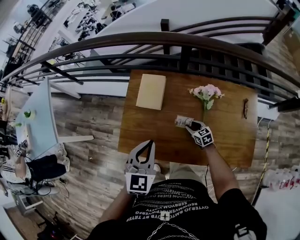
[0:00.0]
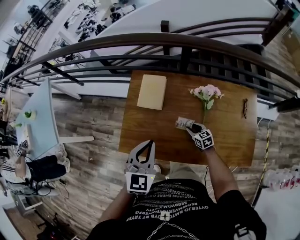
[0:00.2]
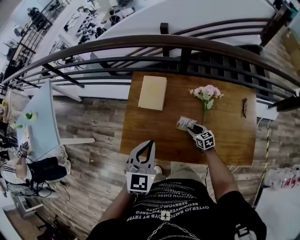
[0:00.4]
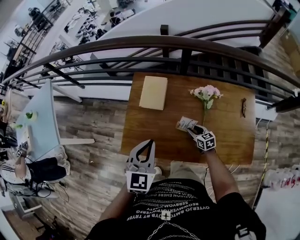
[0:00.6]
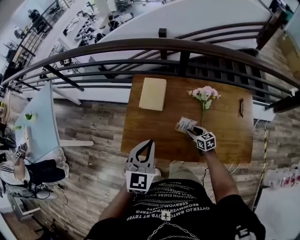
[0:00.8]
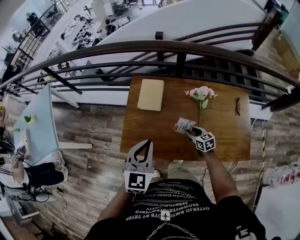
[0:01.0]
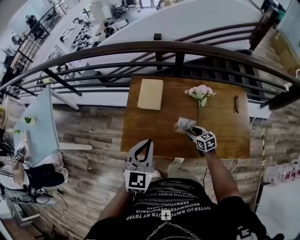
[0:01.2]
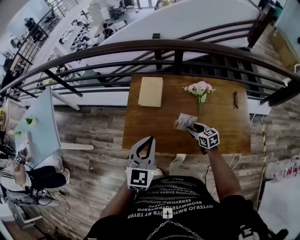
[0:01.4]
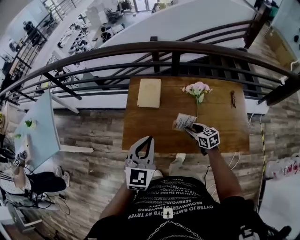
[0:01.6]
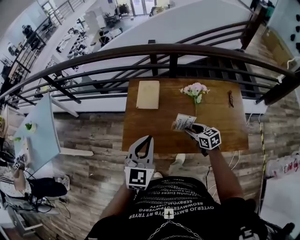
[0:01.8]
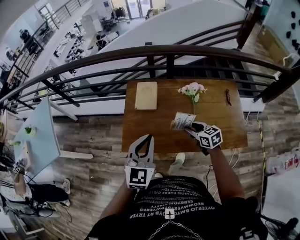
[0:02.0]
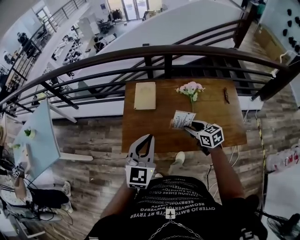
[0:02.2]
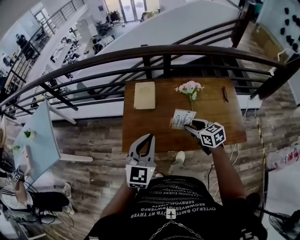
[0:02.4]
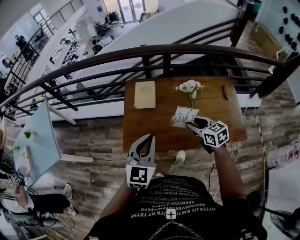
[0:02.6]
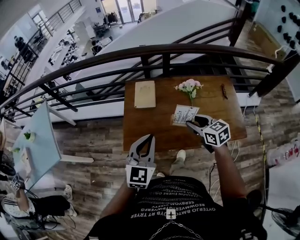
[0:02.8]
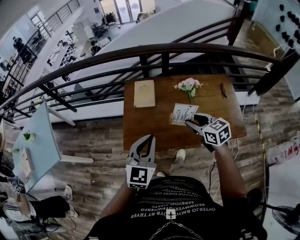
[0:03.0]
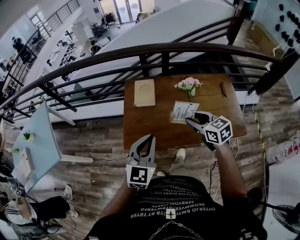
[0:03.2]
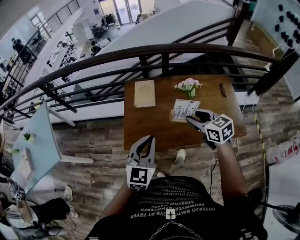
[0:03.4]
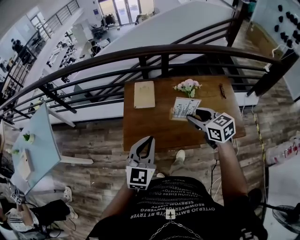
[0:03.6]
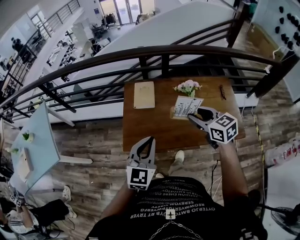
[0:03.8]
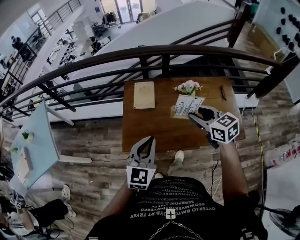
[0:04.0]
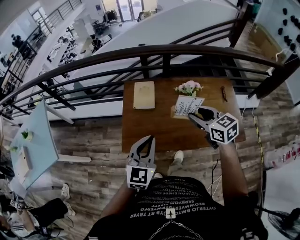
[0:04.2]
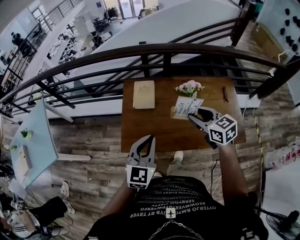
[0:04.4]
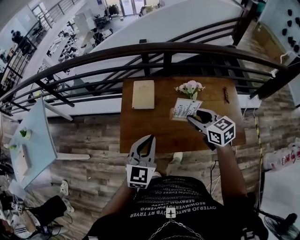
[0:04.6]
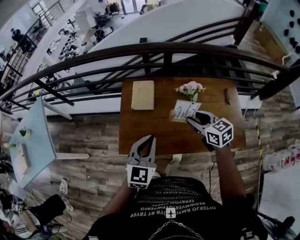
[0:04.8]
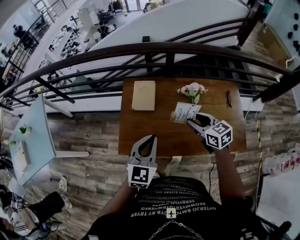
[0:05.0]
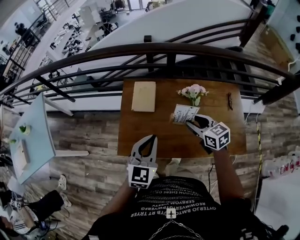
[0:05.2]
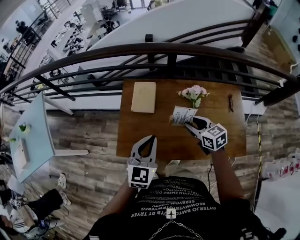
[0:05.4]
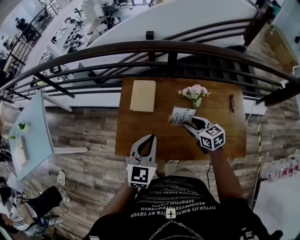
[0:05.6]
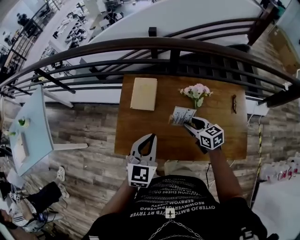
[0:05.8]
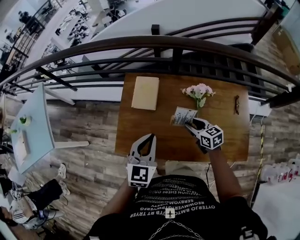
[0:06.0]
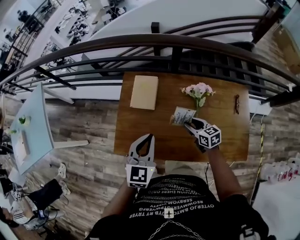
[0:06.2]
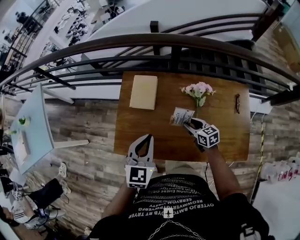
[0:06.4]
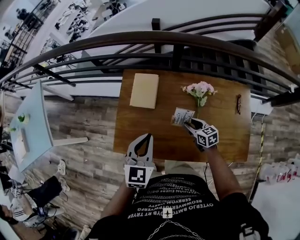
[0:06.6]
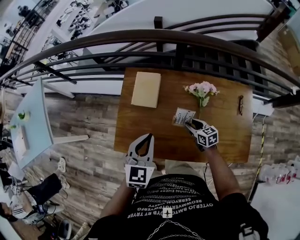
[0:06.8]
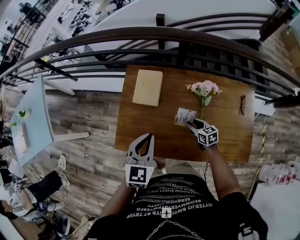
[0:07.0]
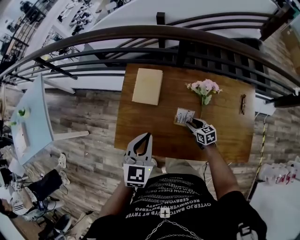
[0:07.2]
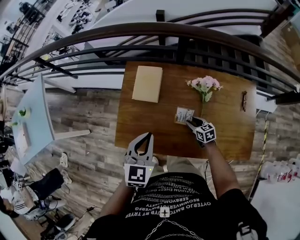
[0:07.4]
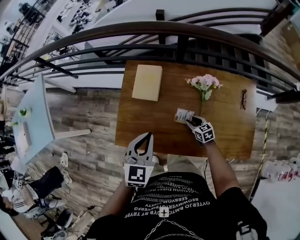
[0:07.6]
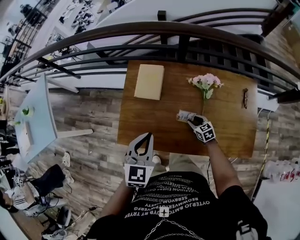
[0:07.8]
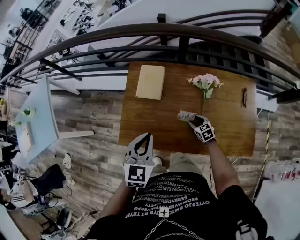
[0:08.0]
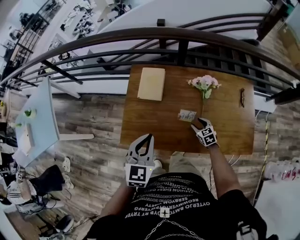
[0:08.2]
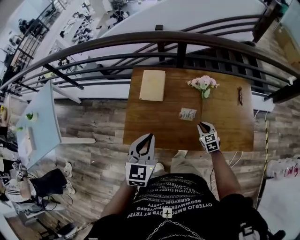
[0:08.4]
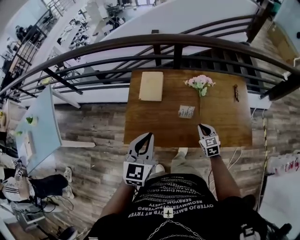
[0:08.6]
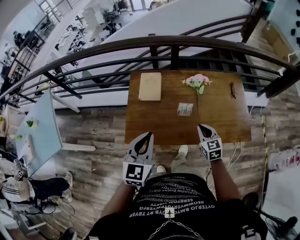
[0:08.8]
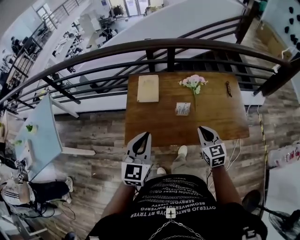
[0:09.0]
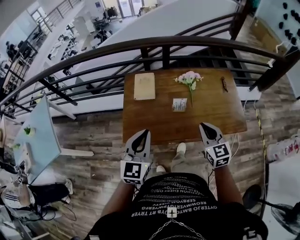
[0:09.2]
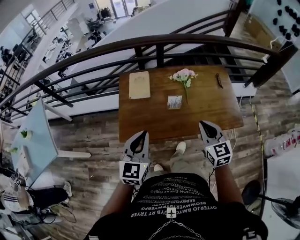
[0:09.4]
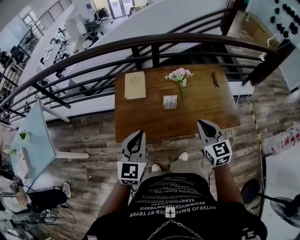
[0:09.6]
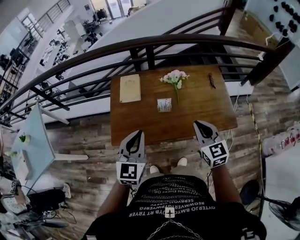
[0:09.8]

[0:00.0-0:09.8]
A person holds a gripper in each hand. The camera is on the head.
0:00.0 to 0:01.4: The right gripper travels upward and backward by roughly 15 cm; the left gripper goes some 5 cm backward.
0:01.4 to 0:02.8: The right gripper moves upward, about 20 cm; the left gripper goes approximately 5 cm backward.
0:02.8 to 0:04.2: The right gripper goes about 5 cm upward.
0:04.2 to 0:05.6: The left gripper goes some 10 cm forward and to the right; the right gripper goes about 15 cm downward and forward.
0:05.6 to 0:07.0: The left gripper moves roughly 5 cm, while the right gripper is displaced downward by about 20 cm.
0:07.0 to 0:08.4: The two grippers go approximately 10 cm backward. The right gripper reaches roughly 5 cm downward, then returns, swivels some 30 degrees, and closes its fingers.
0:08.4 to 0:09.8: The right gripper shifts roughly 30 cm upward and backward, and swivels some 20 degrees; the left gripper travels backward and upward by about 10 cm.

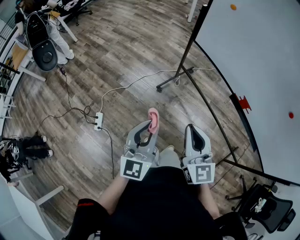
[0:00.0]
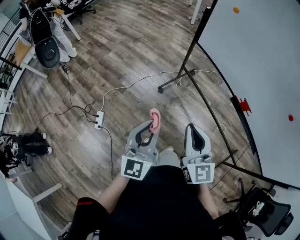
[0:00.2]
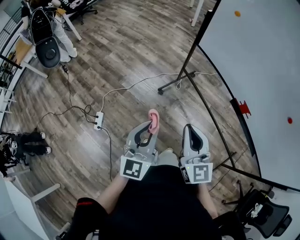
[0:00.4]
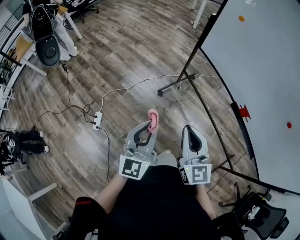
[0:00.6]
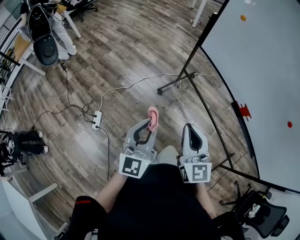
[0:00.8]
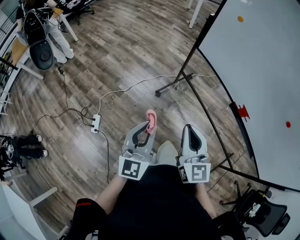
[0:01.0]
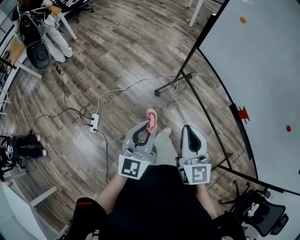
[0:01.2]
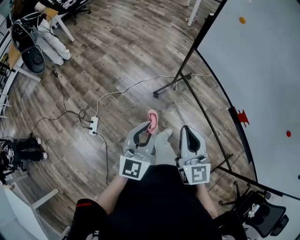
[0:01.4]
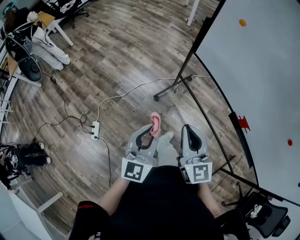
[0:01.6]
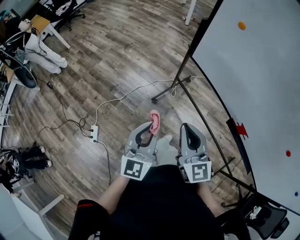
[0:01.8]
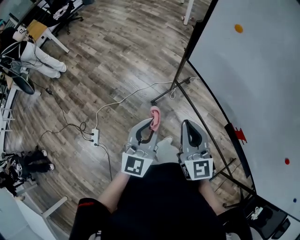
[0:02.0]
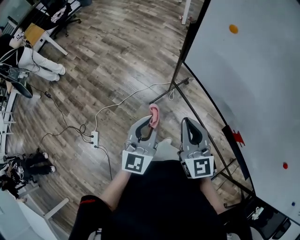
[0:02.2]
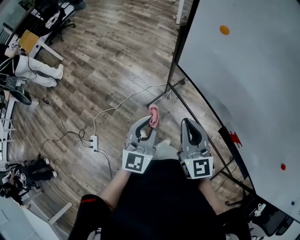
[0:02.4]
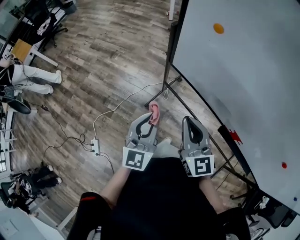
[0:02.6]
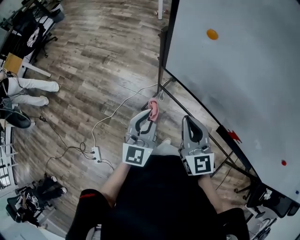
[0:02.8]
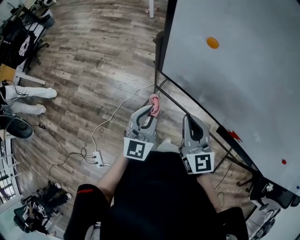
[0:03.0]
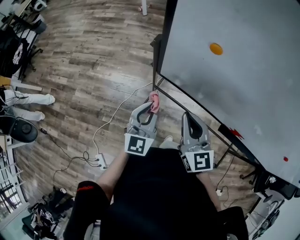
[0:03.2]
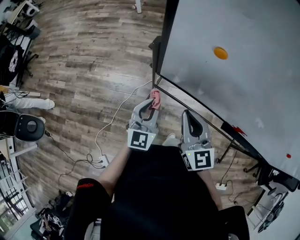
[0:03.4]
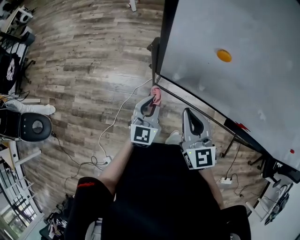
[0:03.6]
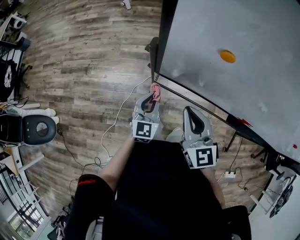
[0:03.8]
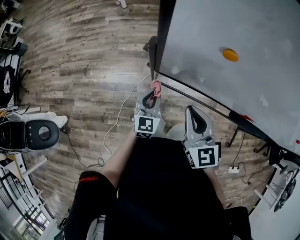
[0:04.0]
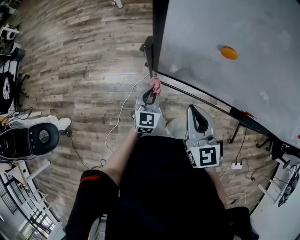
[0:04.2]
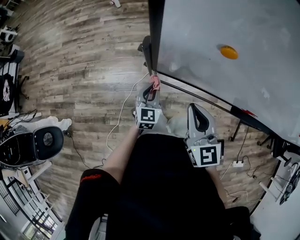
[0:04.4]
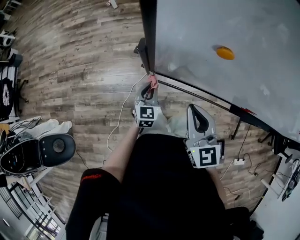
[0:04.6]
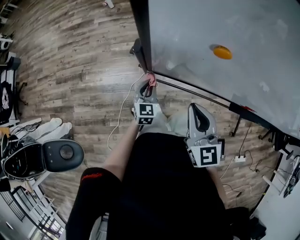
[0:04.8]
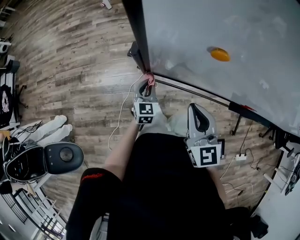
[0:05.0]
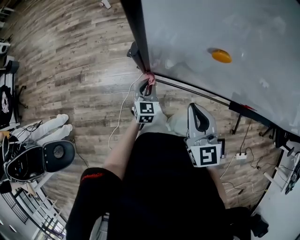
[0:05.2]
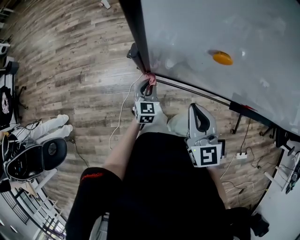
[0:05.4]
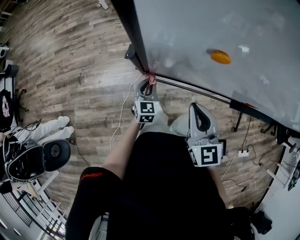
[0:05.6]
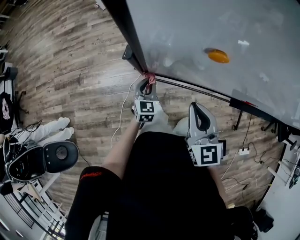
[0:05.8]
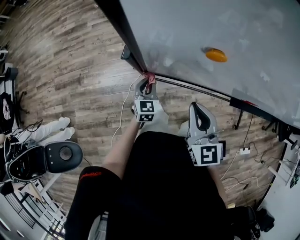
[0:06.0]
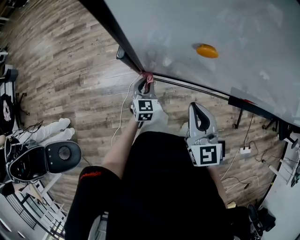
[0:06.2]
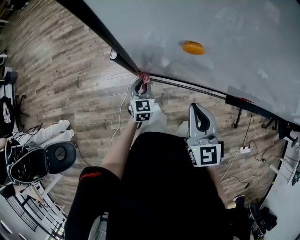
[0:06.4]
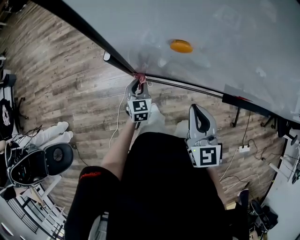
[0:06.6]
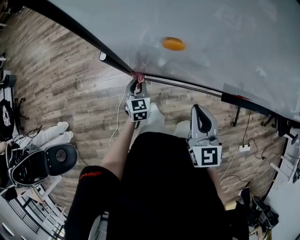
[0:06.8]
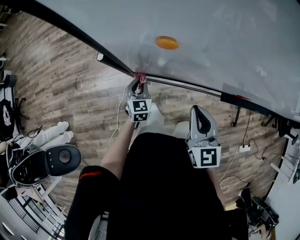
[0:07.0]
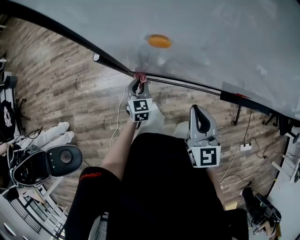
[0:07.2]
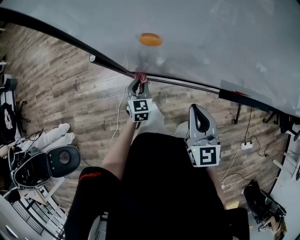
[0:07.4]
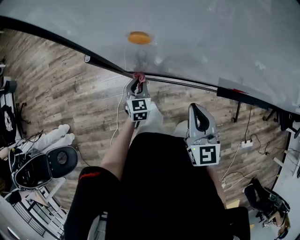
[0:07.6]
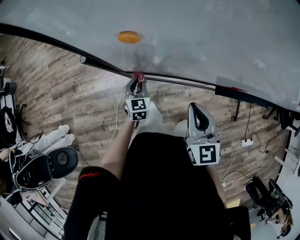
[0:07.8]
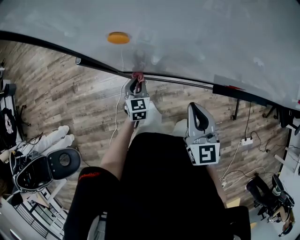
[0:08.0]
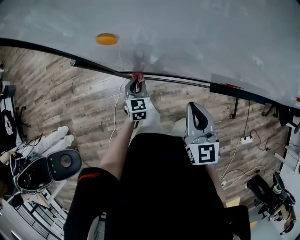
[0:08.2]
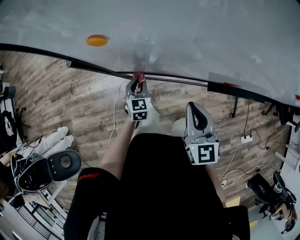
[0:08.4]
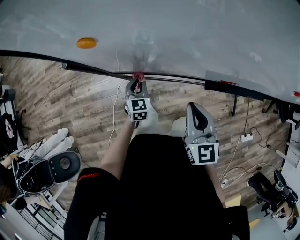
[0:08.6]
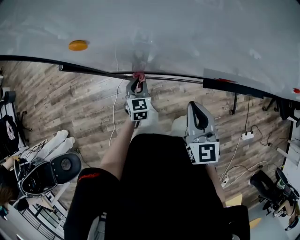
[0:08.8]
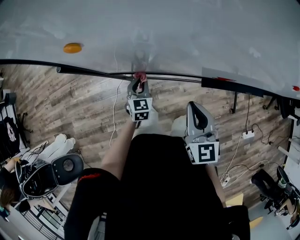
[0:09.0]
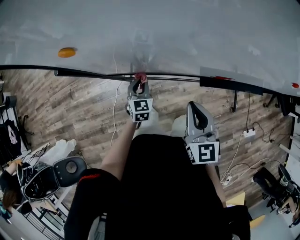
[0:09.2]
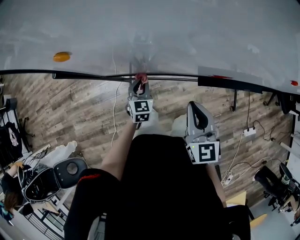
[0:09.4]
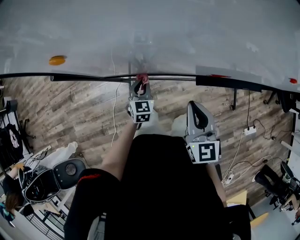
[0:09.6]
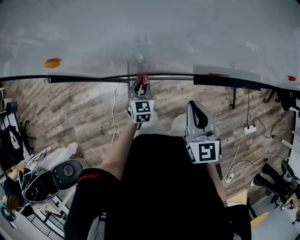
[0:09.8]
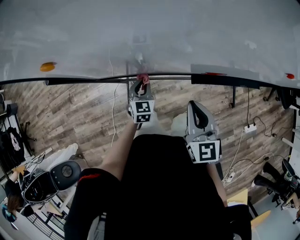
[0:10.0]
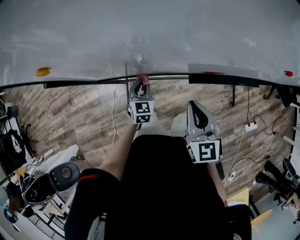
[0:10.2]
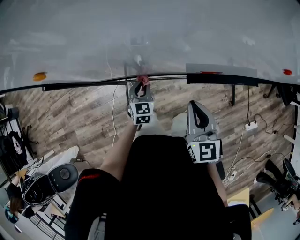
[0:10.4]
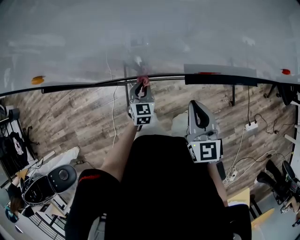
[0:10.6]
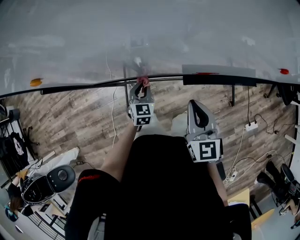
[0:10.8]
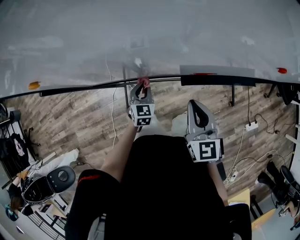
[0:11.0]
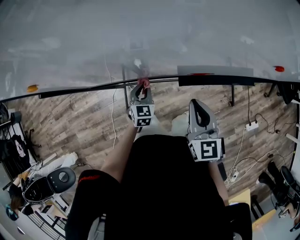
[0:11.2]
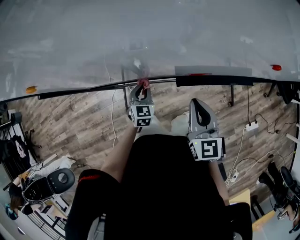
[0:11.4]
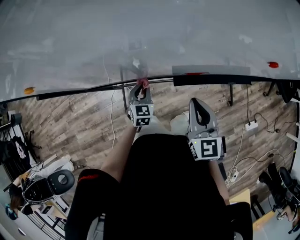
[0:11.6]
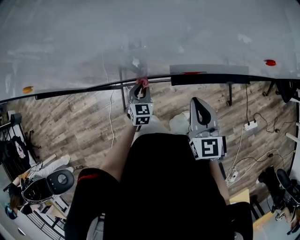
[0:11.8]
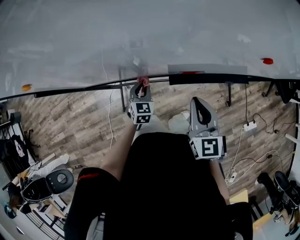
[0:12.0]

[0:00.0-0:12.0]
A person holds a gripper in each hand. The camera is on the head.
0:00.0 to 0:01.6: The two grippers go roughly 10 cm forward.
0:01.6 to 0:03.0: The right gripper heads forward and to the right, covering about 30 cm, while the left gripper is displaced forward by about 35 cm.
0:03.0 to 0:04.4: The right gripper shifts some 5 cm forward. The left gripper travels downward and forward by roughly 25 cm, and swivels approximately 20 degrees.
0:04.4 to 0:06.0: The left gripper ends up approximately 5 cm from where it was.
0:06.0 to 0:07.6: The right gripper is displaced to the right by approximately 10 cm.
0:07.6 to 0:09.0: The grippers both shift to the right by approximately 10 cm.
0:09.0 to 0:10.4: Both grippers travel together to the right, about 10 cm.
0:10.4 to 0:12.0: The two grippers go approximately 10 cm to the right.

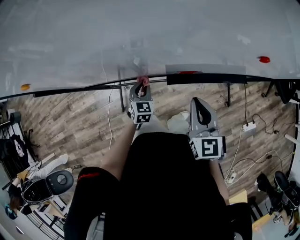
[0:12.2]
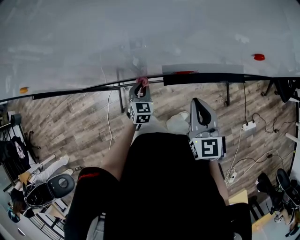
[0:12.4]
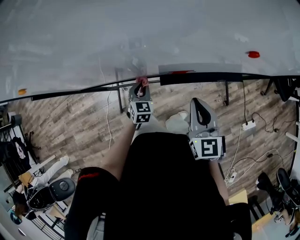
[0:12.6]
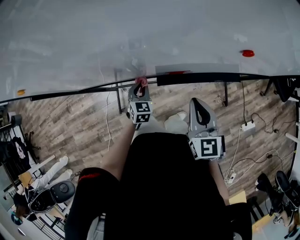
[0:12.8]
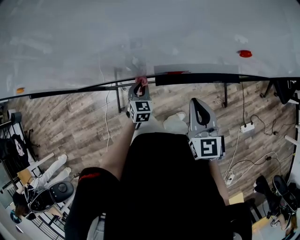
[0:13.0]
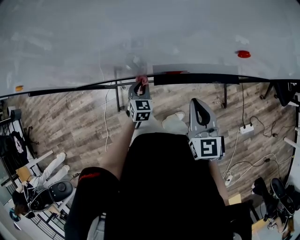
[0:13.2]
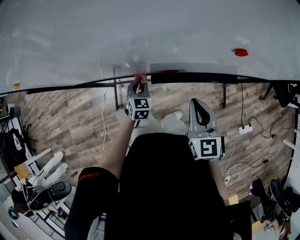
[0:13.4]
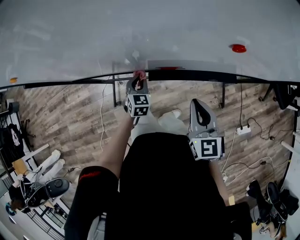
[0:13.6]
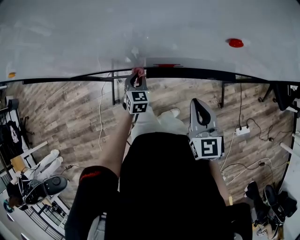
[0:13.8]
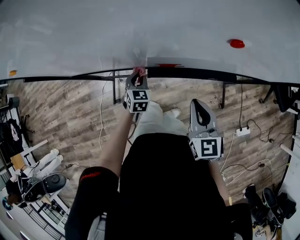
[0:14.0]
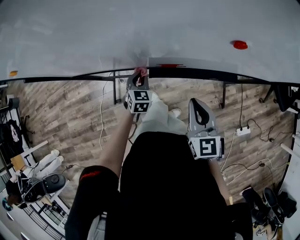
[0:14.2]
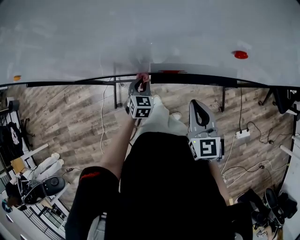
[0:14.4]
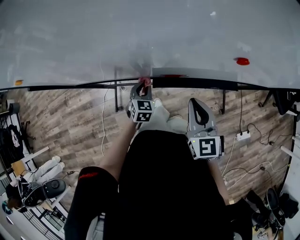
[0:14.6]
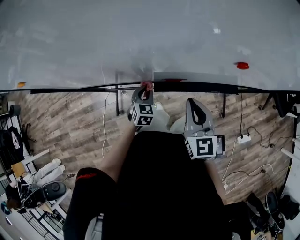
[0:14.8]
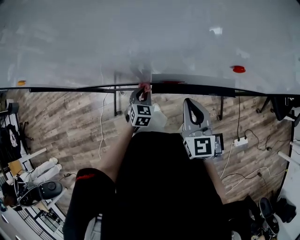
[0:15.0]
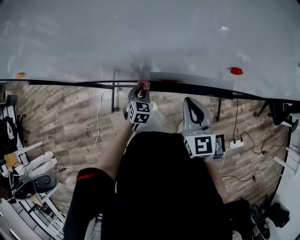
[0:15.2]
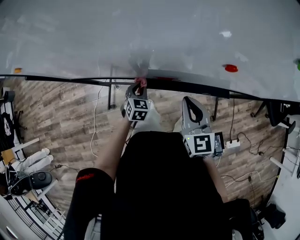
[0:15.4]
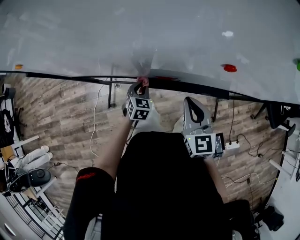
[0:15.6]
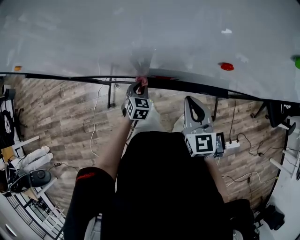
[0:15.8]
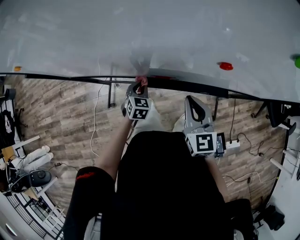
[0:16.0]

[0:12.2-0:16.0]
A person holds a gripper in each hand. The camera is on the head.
0:12.2 to 0:13.4: Both grippers travel together to the right, approximately 10 cm.
0:13.4 to 0:16.0: There are only small adjustments of the grippers.
